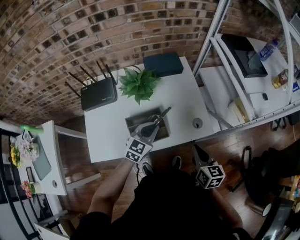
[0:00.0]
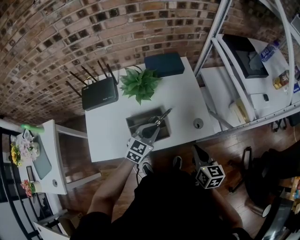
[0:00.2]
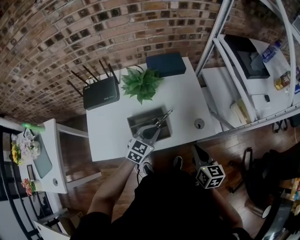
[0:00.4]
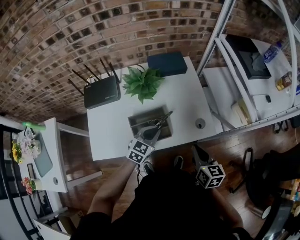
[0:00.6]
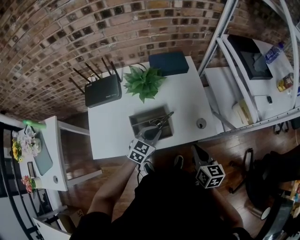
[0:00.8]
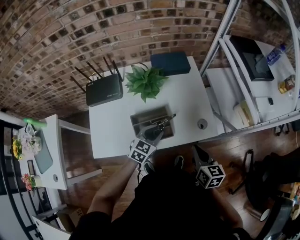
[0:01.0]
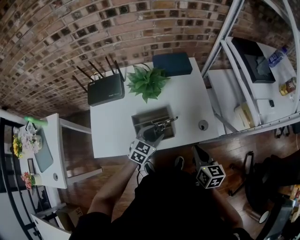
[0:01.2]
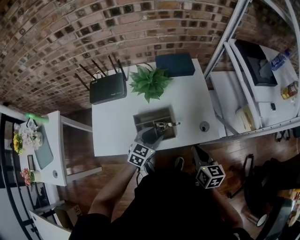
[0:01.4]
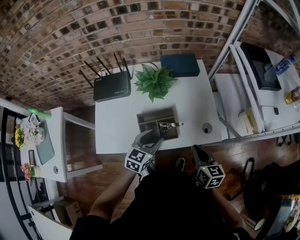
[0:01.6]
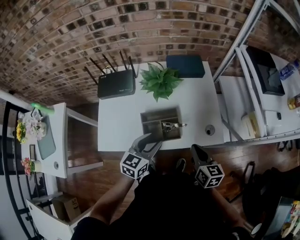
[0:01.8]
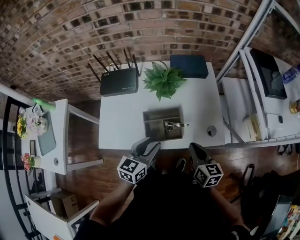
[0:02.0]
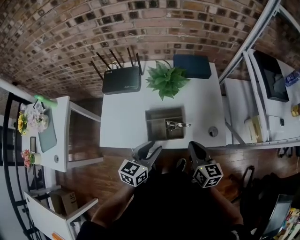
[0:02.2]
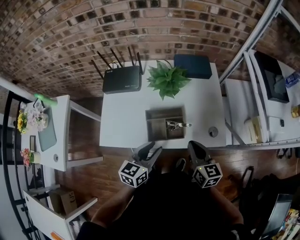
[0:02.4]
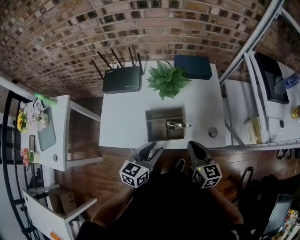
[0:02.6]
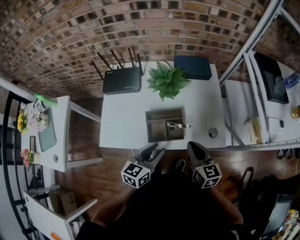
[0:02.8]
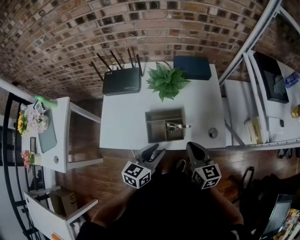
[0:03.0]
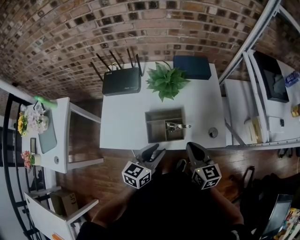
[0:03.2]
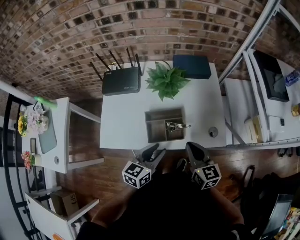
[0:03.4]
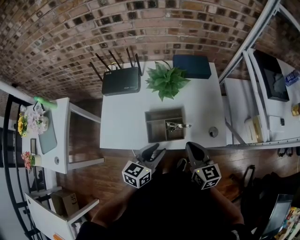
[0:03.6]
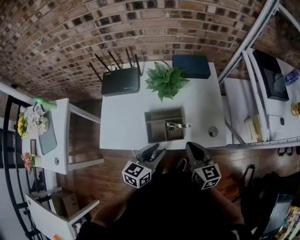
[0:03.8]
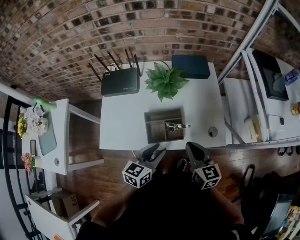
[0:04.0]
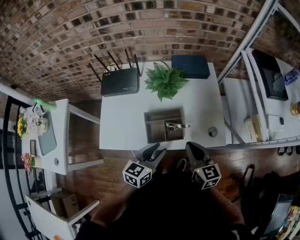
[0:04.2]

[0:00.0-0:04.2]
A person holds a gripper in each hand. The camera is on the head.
0:00.0 to 0:01.4: The left gripper ends up approximately 5 cm from where it was, and opens.
0:01.4 to 0:02.8: The right gripper heads to the left, covering roughly 5 cm, while the left gripper is displaced upward and backward by approximately 10 cm, and rotates some 30 degrees.
0:02.8 to 0:04.2: Both grippers stay about where they are.

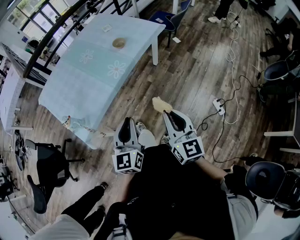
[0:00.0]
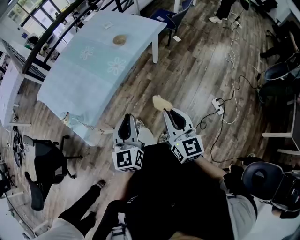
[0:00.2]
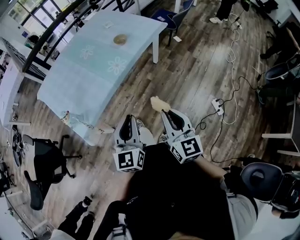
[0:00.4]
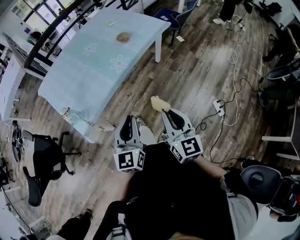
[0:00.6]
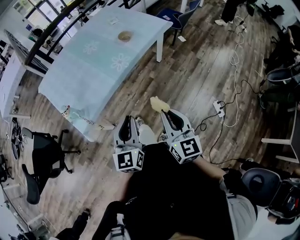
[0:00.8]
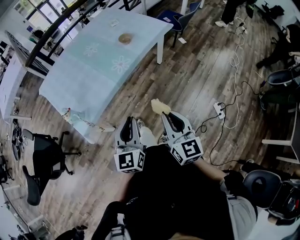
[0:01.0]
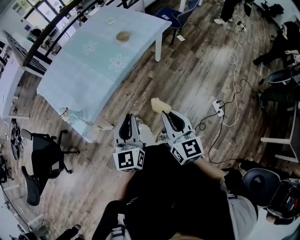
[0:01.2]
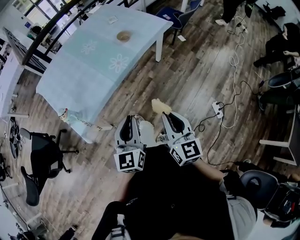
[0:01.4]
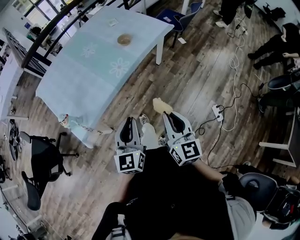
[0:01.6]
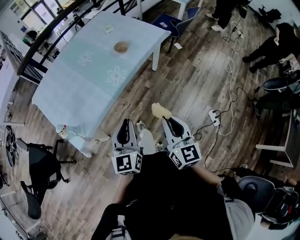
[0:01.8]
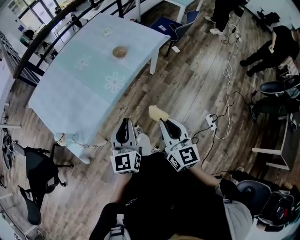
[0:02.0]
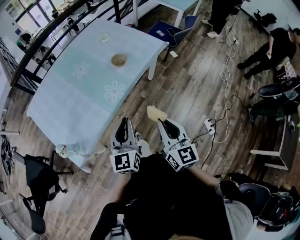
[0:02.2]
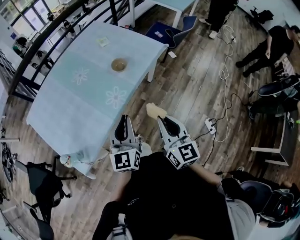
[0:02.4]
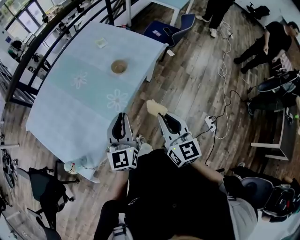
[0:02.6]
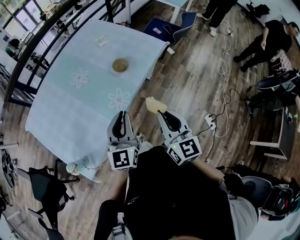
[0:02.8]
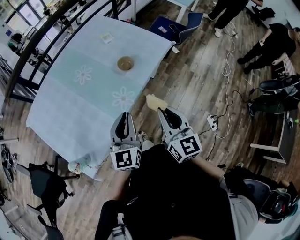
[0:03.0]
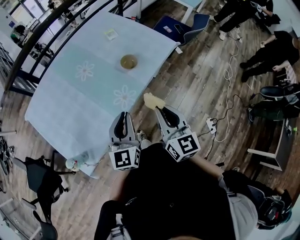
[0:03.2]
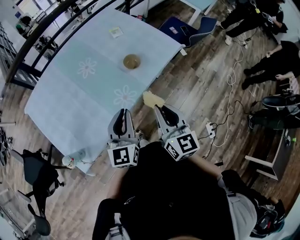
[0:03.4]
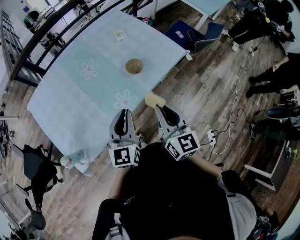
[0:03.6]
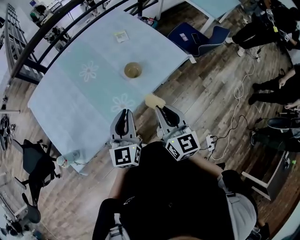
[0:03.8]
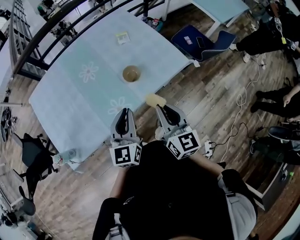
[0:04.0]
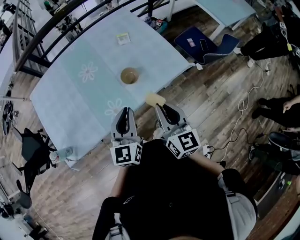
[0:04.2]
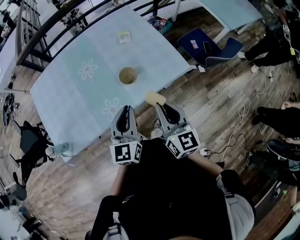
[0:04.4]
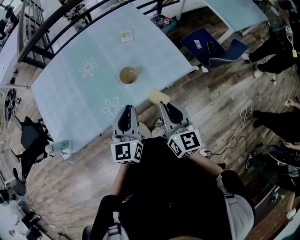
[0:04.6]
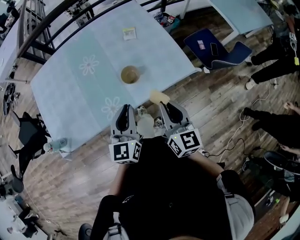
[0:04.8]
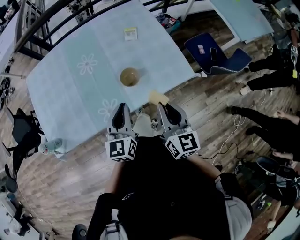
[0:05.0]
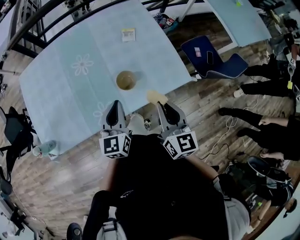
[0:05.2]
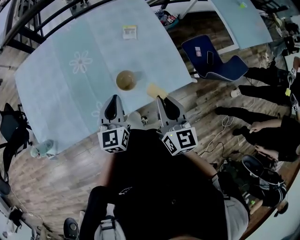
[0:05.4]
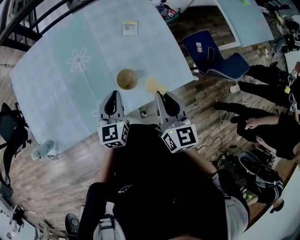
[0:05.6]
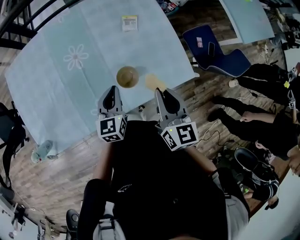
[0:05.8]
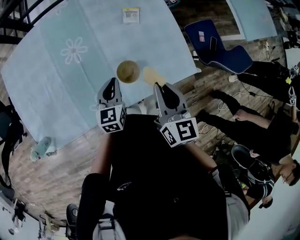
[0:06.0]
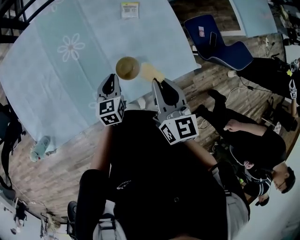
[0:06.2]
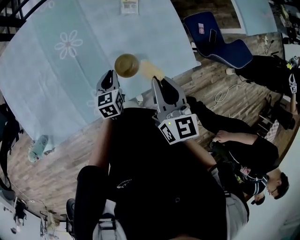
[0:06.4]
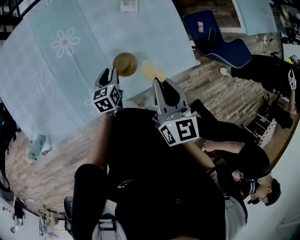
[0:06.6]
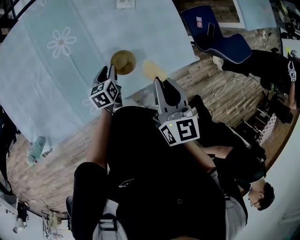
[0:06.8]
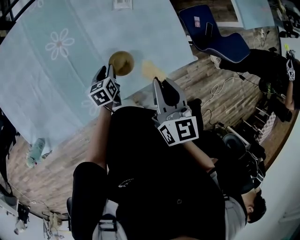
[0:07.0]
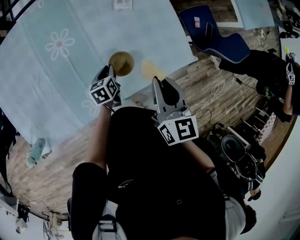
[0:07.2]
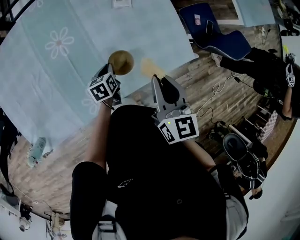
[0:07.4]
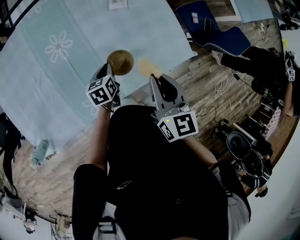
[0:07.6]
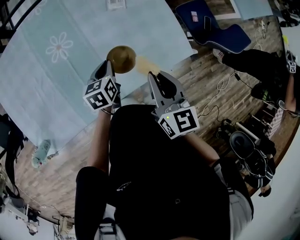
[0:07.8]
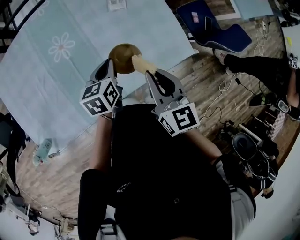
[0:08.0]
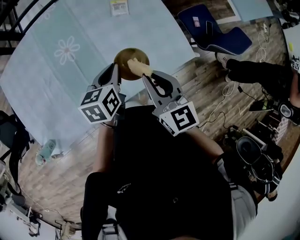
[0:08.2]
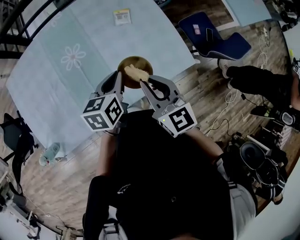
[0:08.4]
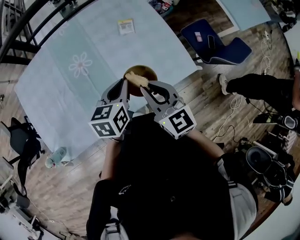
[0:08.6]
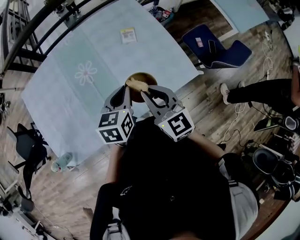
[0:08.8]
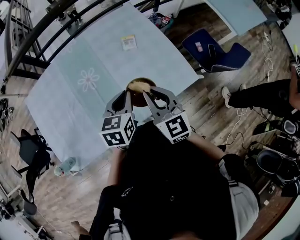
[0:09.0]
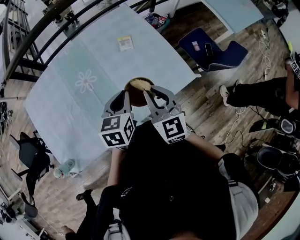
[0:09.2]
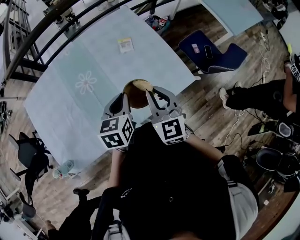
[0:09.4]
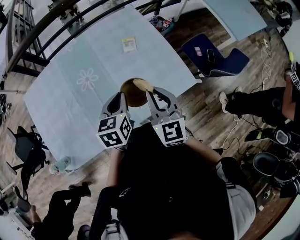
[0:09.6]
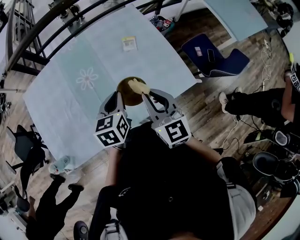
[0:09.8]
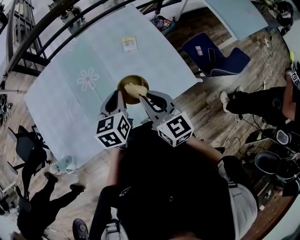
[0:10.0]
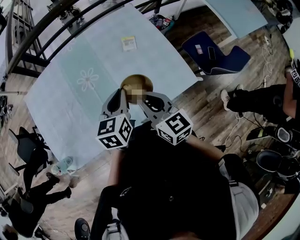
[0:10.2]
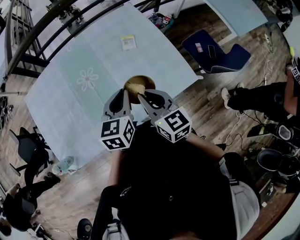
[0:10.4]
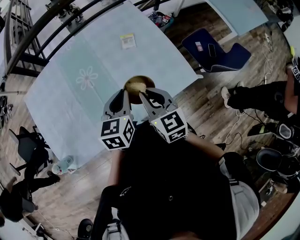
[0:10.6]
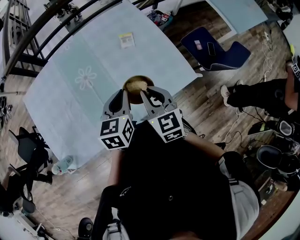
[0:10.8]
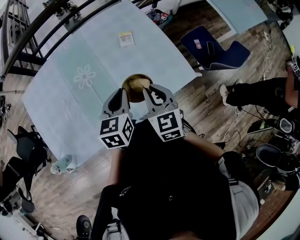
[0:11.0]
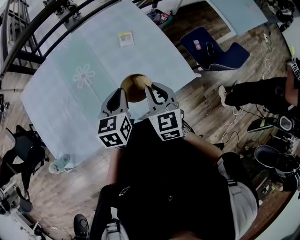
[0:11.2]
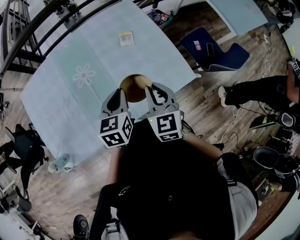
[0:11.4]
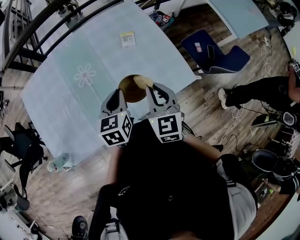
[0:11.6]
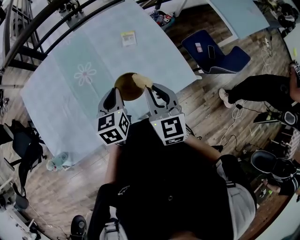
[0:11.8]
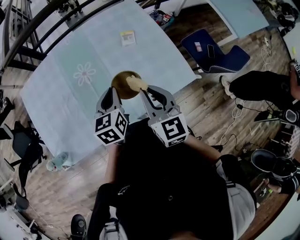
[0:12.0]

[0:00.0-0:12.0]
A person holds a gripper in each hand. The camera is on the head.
0:00.0 to 0:01.6: The right gripper goes roughly 5 cm forward.
0:01.6 to 0:03.0: Both grippers move forward, about 25 cm.
0:03.0 to 0:04.4: The right gripper shifts approximately 25 cm forward and to the right, and turns by roughly 20 degrees; the left gripper is displaced to the right and forward by some 20 cm, and turns by about 20 degrees.
0:04.4 to 0:06.0: The right gripper is displaced forward by about 20 cm; the left gripper shifts some 25 cm forward and downward, and swivels roughly 20 degrees.
0:06.0 to 0:07.6: The left gripper is displaced downward by roughly 10 cm, rotates roughly 30 degrees, and opens, then closes again.
0:07.6 to 0:09.0: The left gripper travels upward by approximately 25 cm, and turns by some 30 degrees. The right gripper heads upward, covering some 5 cm, and rotates approximately 20 degrees.
0:09.0 to 0:10.4: The grippers stay close to where they were, moving slightly.
0:10.4 to 0:12.0: The left gripper moves some 5 cm.

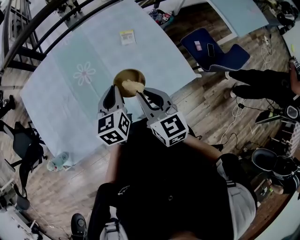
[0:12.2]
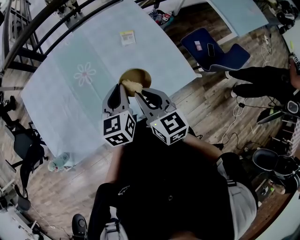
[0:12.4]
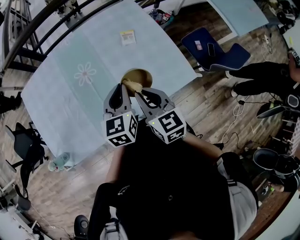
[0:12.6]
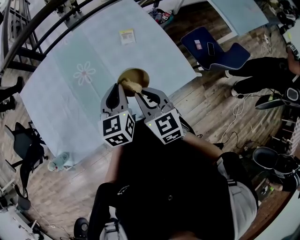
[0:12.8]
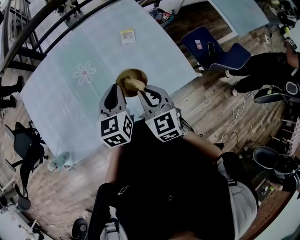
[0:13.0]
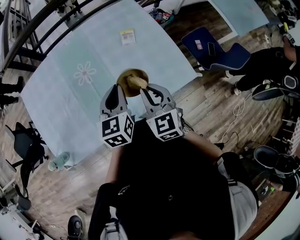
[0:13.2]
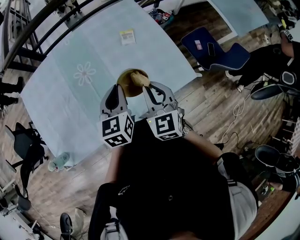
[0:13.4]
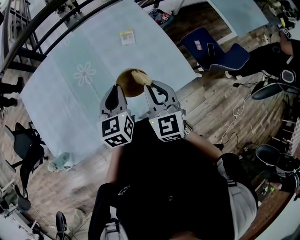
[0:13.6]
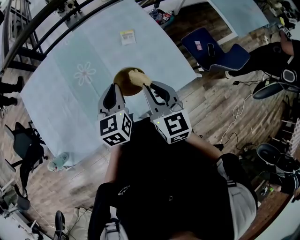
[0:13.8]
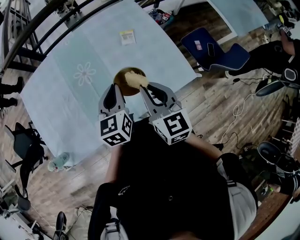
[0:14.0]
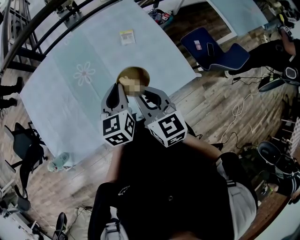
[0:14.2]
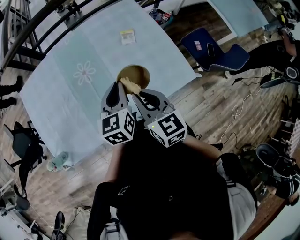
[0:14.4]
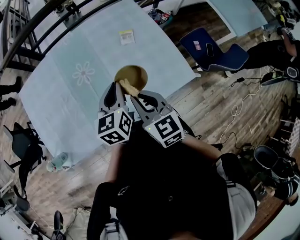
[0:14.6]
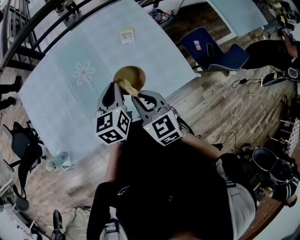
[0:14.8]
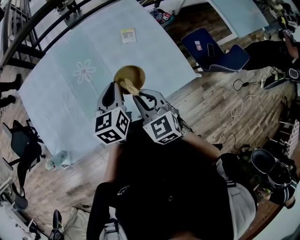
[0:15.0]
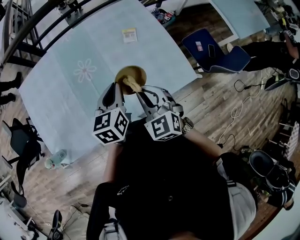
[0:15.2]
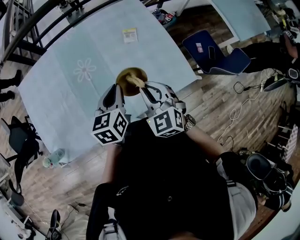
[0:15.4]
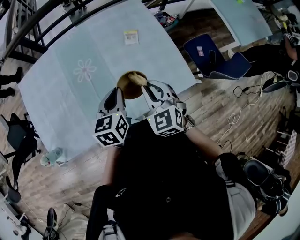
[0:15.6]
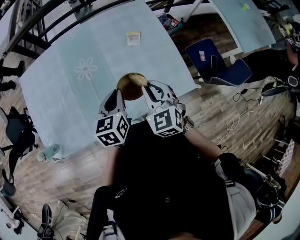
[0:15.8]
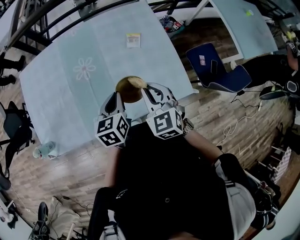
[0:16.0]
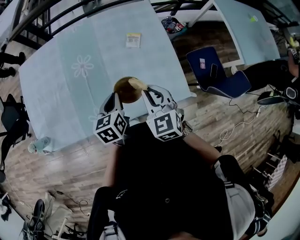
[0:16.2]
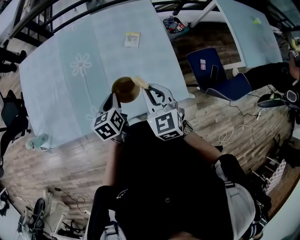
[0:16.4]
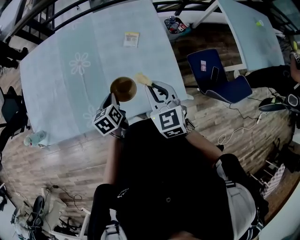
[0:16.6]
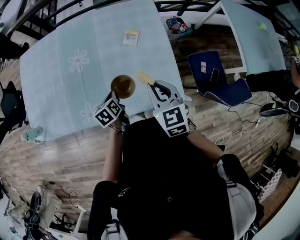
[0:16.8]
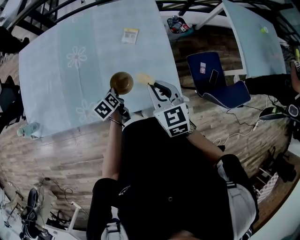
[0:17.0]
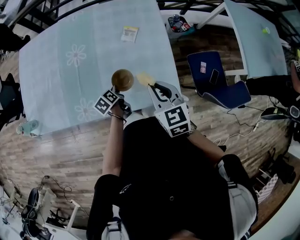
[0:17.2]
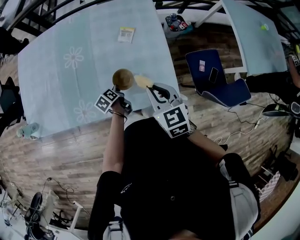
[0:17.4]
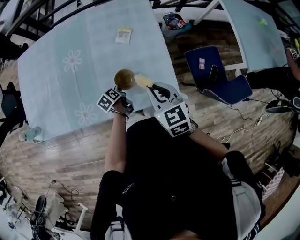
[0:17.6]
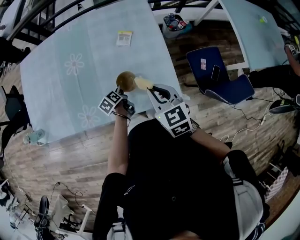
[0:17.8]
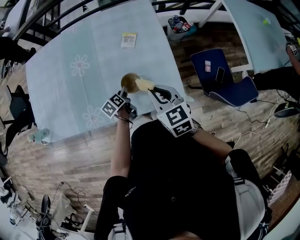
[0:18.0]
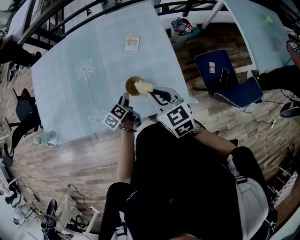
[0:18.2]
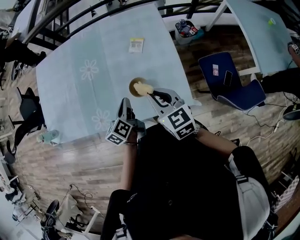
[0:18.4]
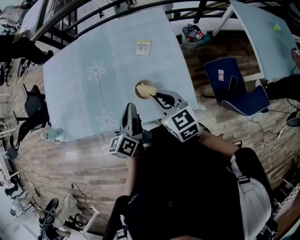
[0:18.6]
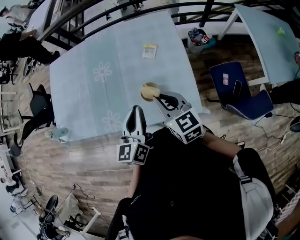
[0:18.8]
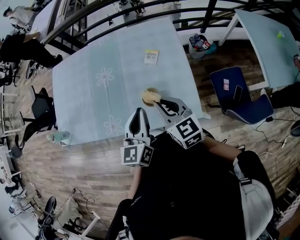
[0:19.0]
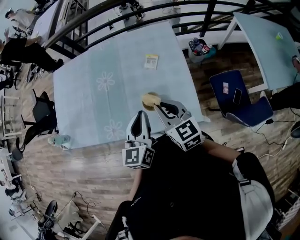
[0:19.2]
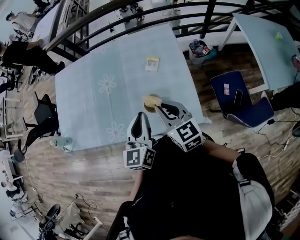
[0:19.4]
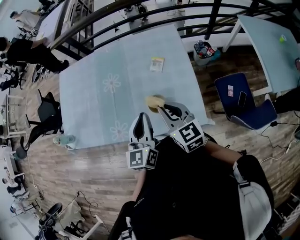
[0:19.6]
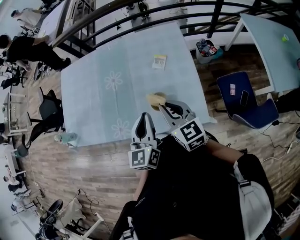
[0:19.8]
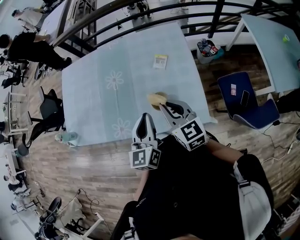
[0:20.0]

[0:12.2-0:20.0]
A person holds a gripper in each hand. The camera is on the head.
0:13.8 to 0:15.4: The right gripper heads downward, covering roughly 5 cm, and changes its angle by roughly 30 degrees.
0:15.4 to 0:16.8: The left gripper heads downward, covering roughly 15 cm, and swivels some 40 degrees. The right gripper shifts about 15 cm to the right.
0:16.8 to 0:18.4: The left gripper goes some 5 cm upward, rotates approximately 20 degrees, and opens, then closes once more.
0:18.4 to 0:20.0: The left gripper travels upward by roughly 15 cm, and rotates approximately 40 degrees.
